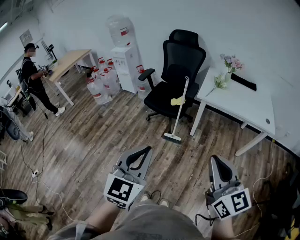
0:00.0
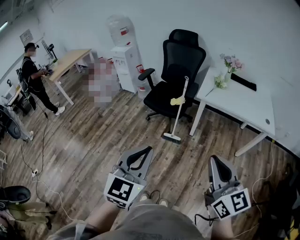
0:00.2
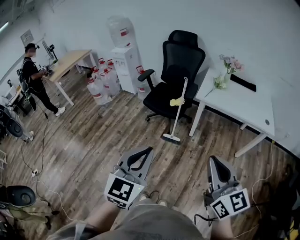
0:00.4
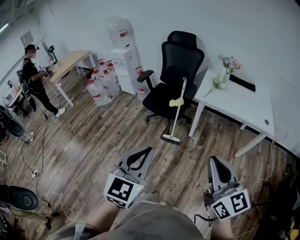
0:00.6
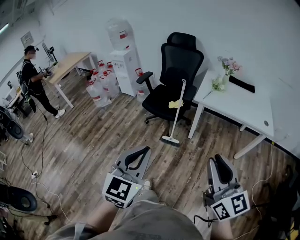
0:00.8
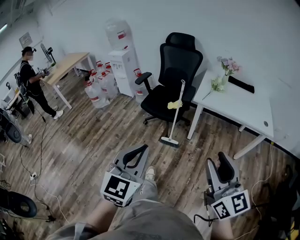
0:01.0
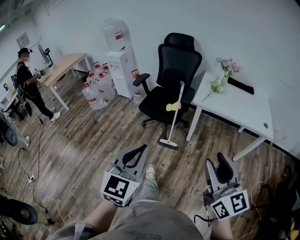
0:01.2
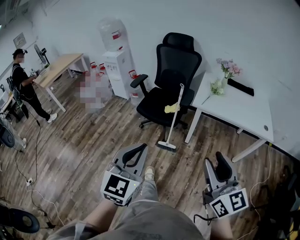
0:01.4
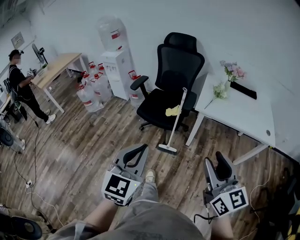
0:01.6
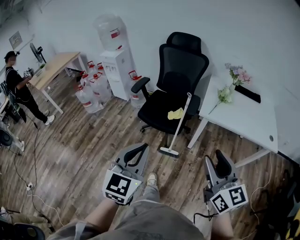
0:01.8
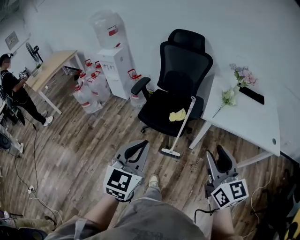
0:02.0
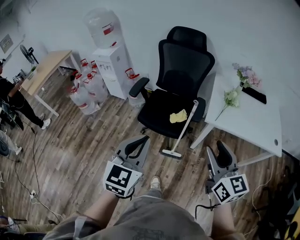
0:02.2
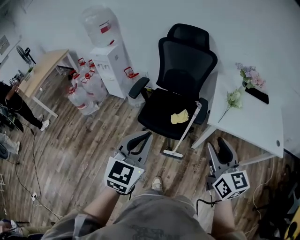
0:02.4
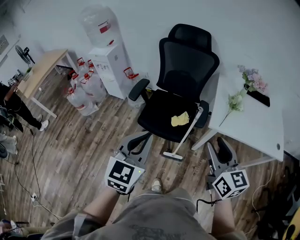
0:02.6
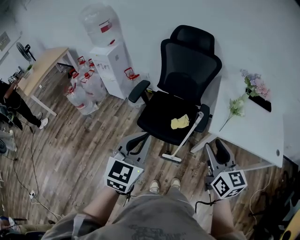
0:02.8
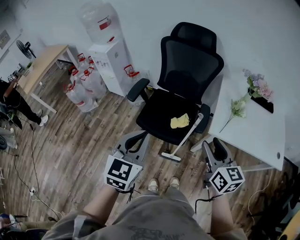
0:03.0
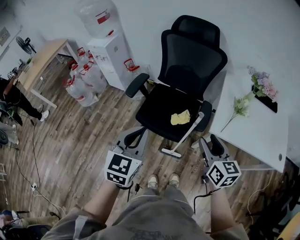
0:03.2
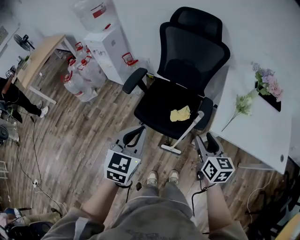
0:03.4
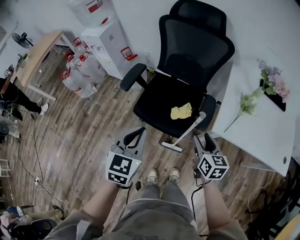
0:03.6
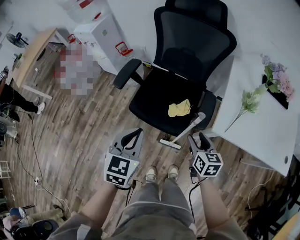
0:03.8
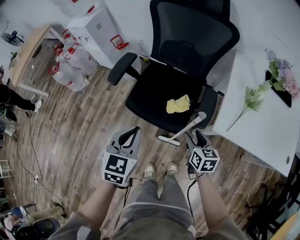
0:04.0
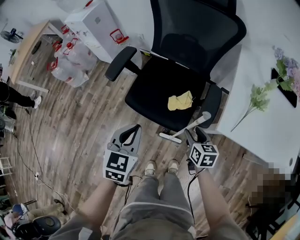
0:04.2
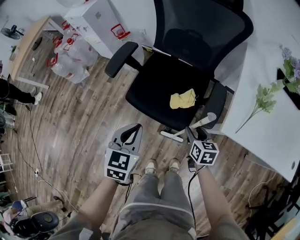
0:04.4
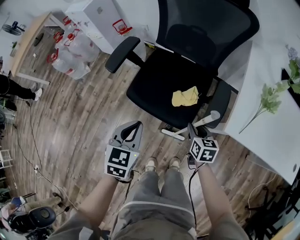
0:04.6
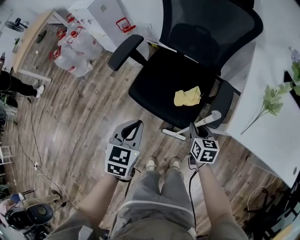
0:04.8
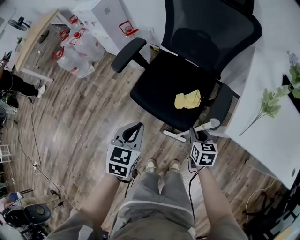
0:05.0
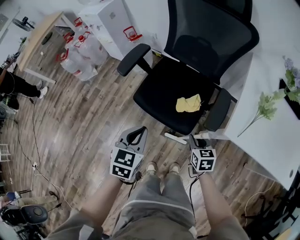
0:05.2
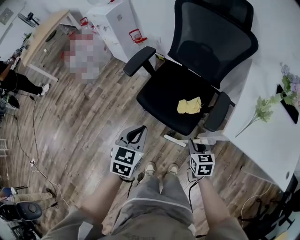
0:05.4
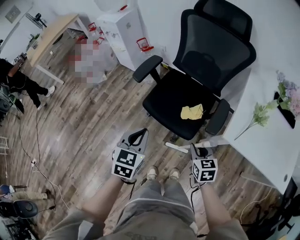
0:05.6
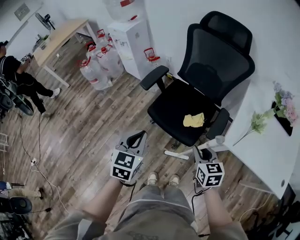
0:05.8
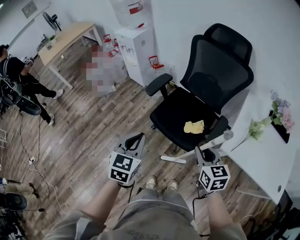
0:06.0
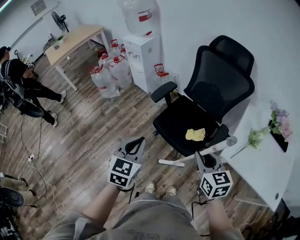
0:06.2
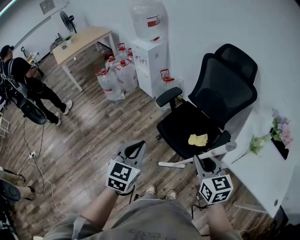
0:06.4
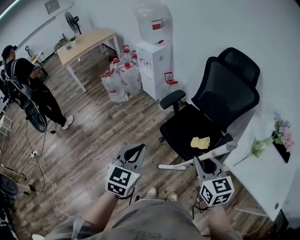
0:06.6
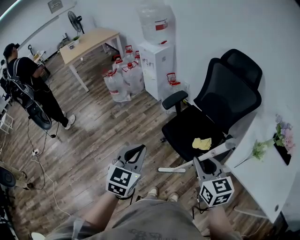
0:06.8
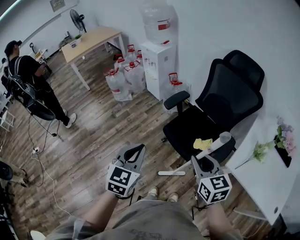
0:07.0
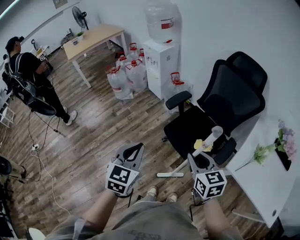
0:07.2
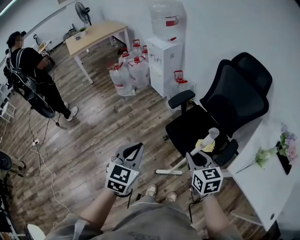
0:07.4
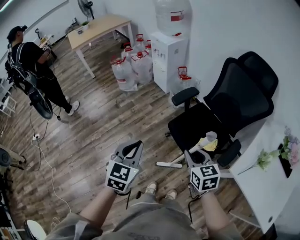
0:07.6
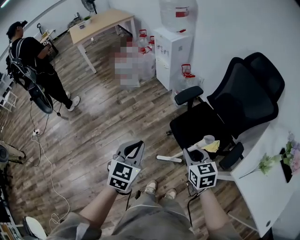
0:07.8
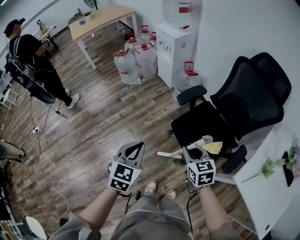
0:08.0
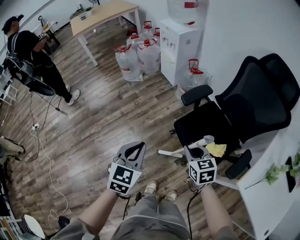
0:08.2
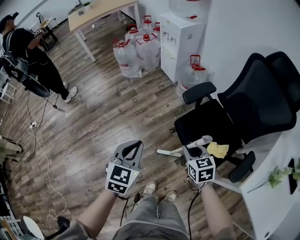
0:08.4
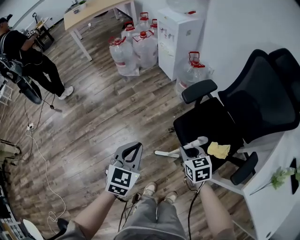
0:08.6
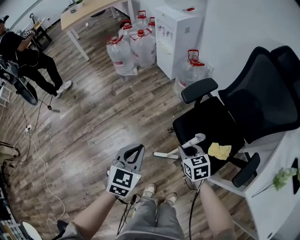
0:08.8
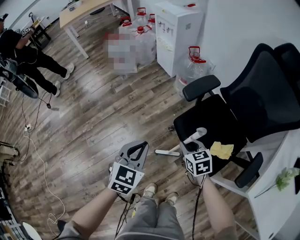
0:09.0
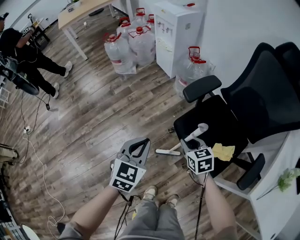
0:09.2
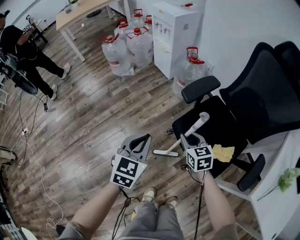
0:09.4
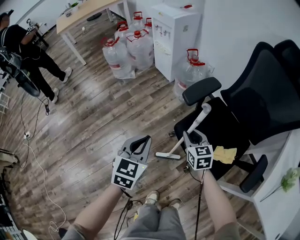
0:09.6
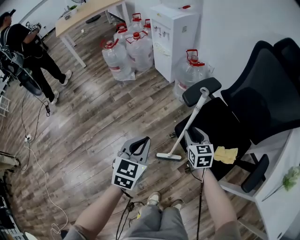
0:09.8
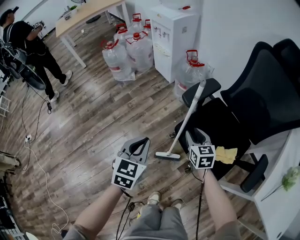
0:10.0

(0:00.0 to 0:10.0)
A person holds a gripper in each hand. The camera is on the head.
0:00.0 - 0:01.4: Both grippers travel together forward, some 10 cm. The right gripper opens.
0:01.4 - 0:02.8: Both grippers travel together forward, some 40 cm.
0:02.8 - 0:04.2: The grippers both shift downward and forward by approximately 35 cm. The right gripper turns by approximately 30 degrees, while the left gripper changes its angle by approximately 20 degrees.
0:04.2 - 0:05.8: The right gripper heads upward and to the left, covering approximately 15 cm, changes its angle by roughly 20 degrees, and closes its fingers. The left gripper heads upward, to the left and backward, covering approximately 15 cm.
0:05.8 - 0:07.2: The left gripper is displaced upward, to the left and backward by about 15 cm; the right gripper goes roughly 20 cm upward and to the left, and changes its angle by about 20 degrees.
0:07.2 - 0:08.6: The grippers both shift downward and forward by some 25 cm. The right gripper turns by approximately 20 degrees.
0:08.6 - 0:10.0: Both grippers travel together forward and downward, some 10 cm.

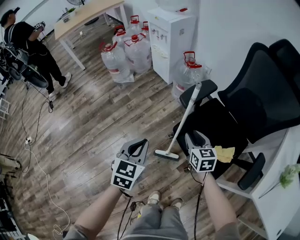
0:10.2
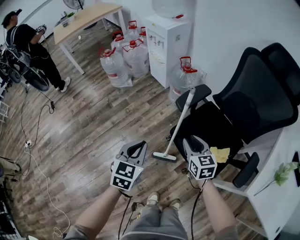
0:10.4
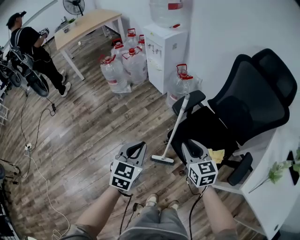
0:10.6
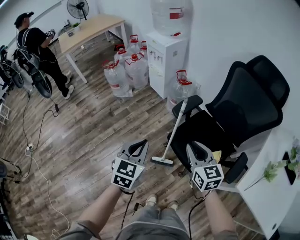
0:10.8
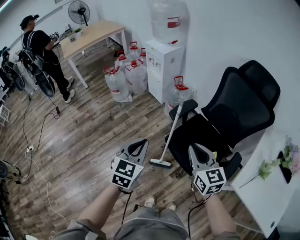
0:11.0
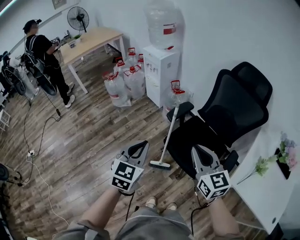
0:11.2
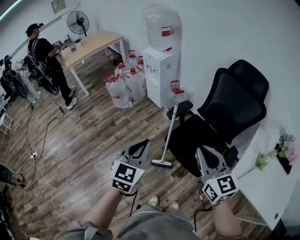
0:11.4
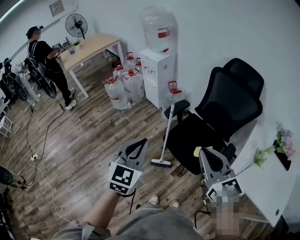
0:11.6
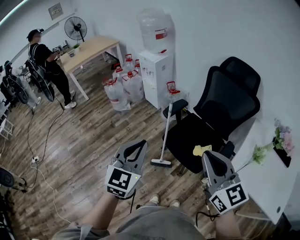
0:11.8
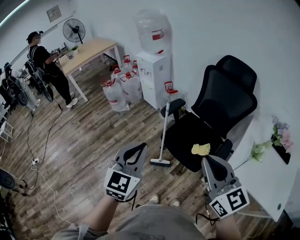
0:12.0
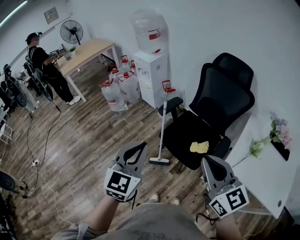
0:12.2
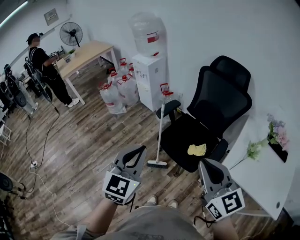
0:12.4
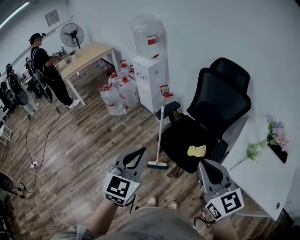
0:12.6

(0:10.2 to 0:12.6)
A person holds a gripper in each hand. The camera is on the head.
0:10.2 - 0:11.4: The right gripper travels upward and backward by some 50 cm, rotates roughly 30 degrees, and closes its fingers. The left gripper travels upward by about 30 cm.
0:11.4 - 0:12.6: The grippers both shift backward, upward and to the right by approximately 15 cm.

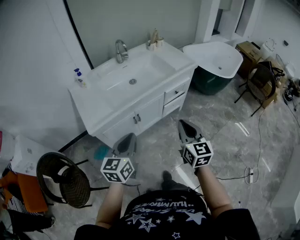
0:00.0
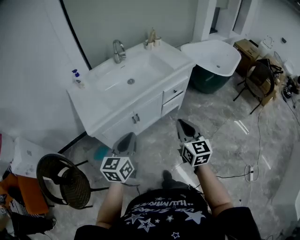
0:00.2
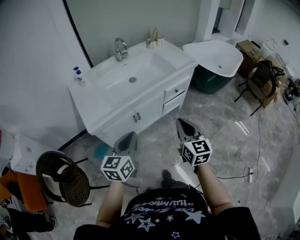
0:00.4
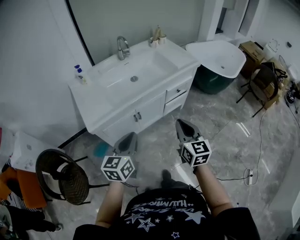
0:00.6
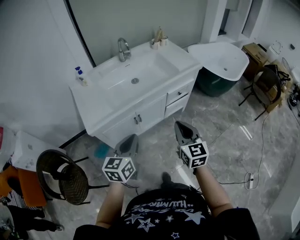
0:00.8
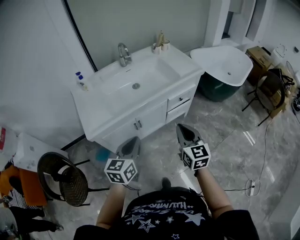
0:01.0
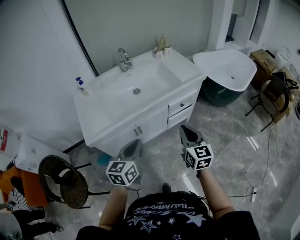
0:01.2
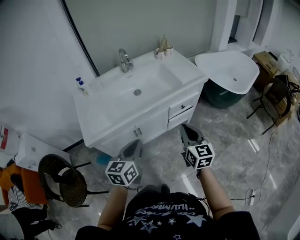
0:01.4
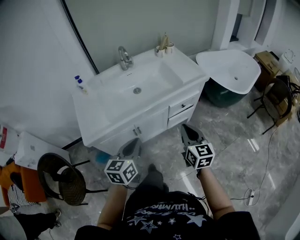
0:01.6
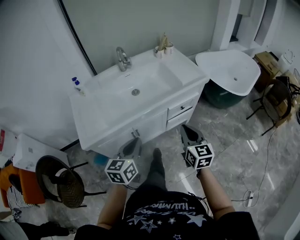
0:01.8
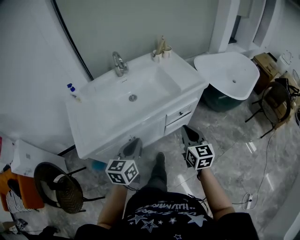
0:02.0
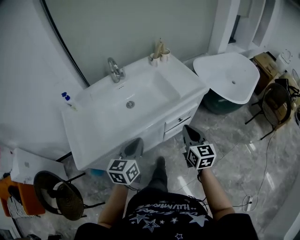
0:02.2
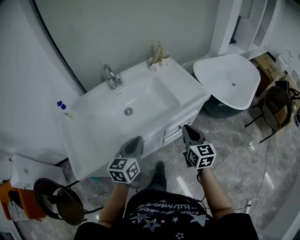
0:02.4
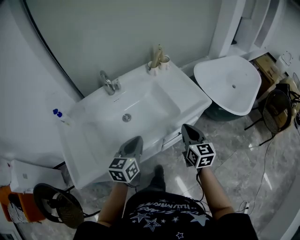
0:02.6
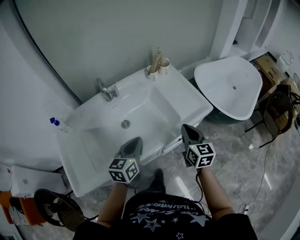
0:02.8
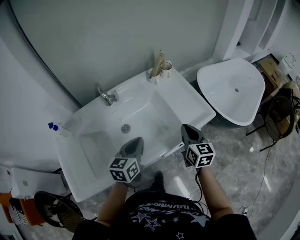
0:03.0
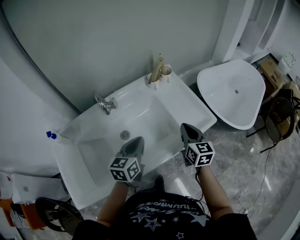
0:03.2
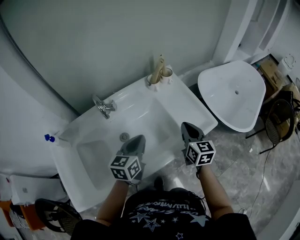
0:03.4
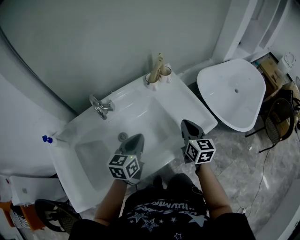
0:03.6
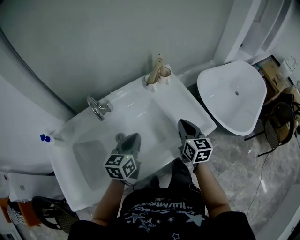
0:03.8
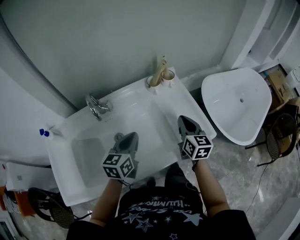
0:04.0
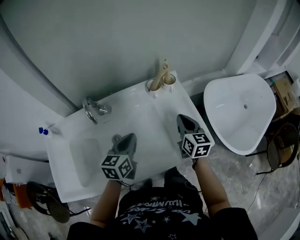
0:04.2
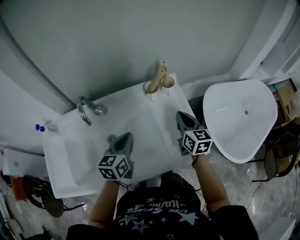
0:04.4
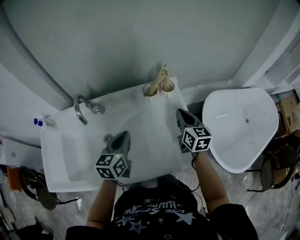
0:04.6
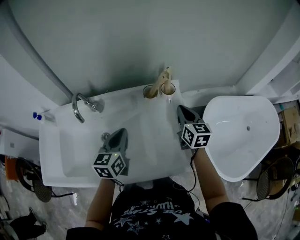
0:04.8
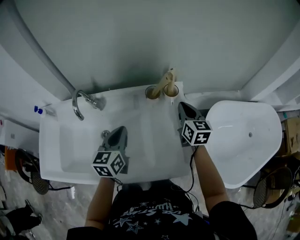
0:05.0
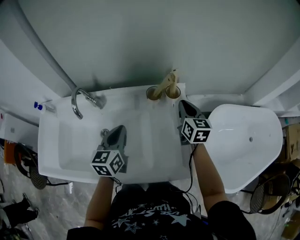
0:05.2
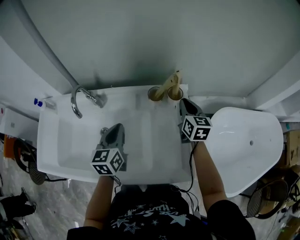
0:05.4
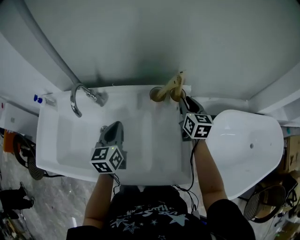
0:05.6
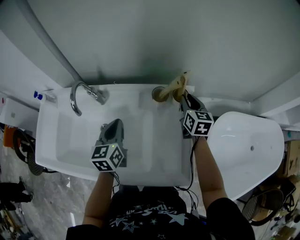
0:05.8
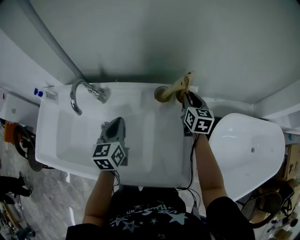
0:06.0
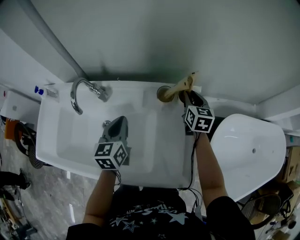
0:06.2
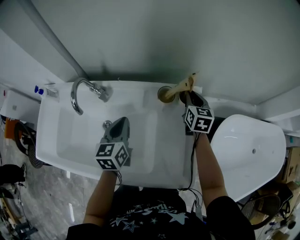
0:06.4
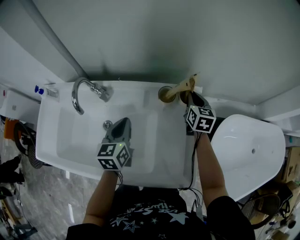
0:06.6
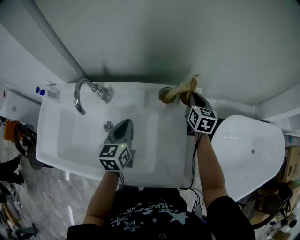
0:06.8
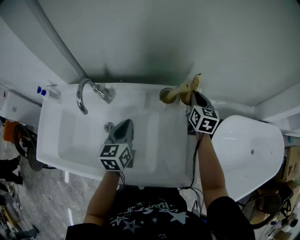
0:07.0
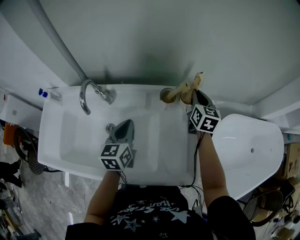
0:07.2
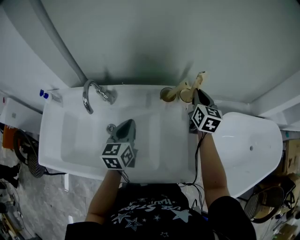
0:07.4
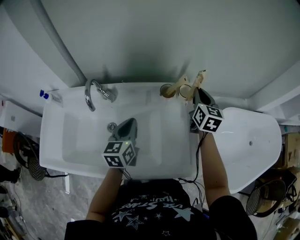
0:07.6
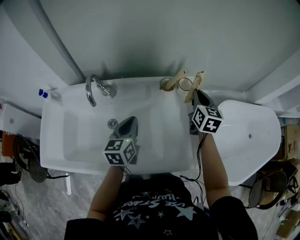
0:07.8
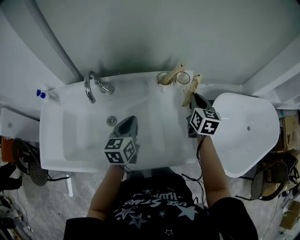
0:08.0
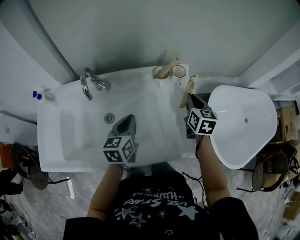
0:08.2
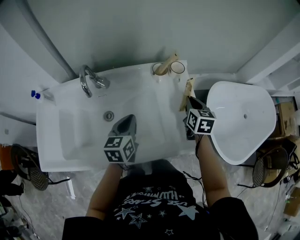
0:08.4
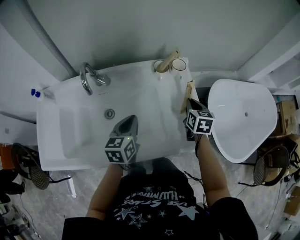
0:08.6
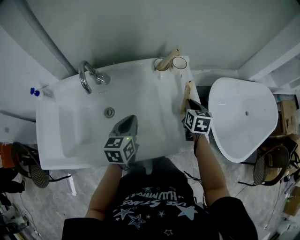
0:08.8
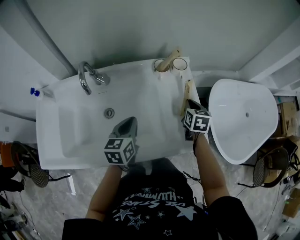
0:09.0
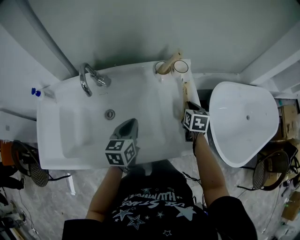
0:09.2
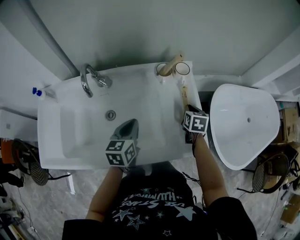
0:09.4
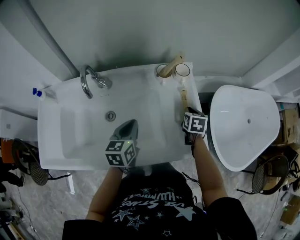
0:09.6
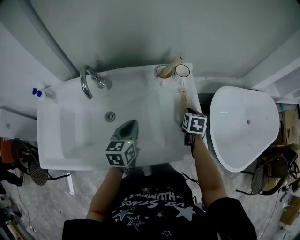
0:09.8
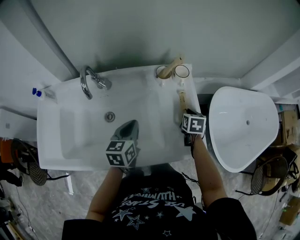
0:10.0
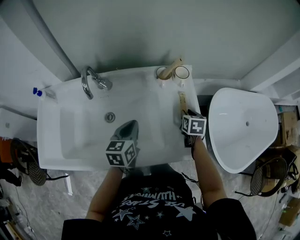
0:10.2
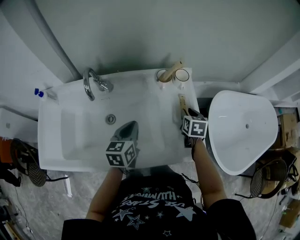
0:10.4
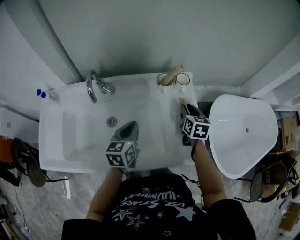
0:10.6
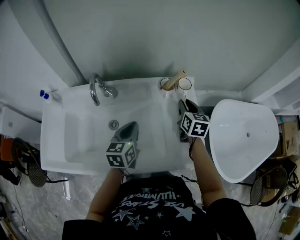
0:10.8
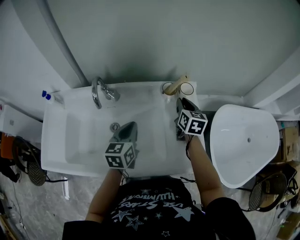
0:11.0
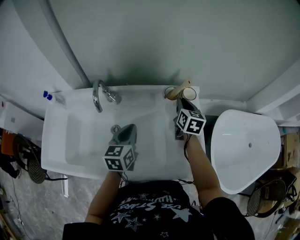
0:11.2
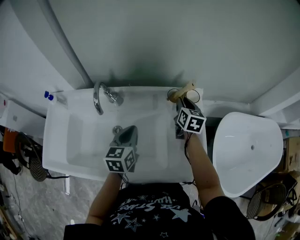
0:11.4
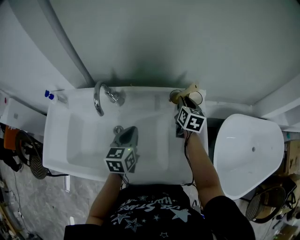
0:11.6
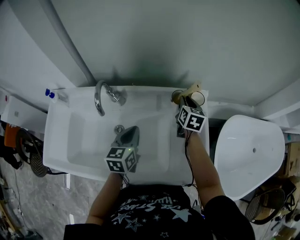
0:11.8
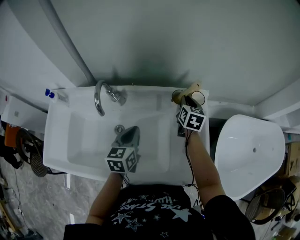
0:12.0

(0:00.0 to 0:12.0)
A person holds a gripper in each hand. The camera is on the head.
0:00.0 - 0:01.6: The grippers both shift forward and to the right by roughly 15 cm.
0:01.6 - 0:03.0: Both grippers move forward, some 35 cm.
0:03.0 - 0:04.4: The left gripper travels forward by some 15 cm. Meanwhile the right gripper heads forward, covering approximately 25 cm.
0:04.4 - 0:06.0: The right gripper heads forward, covering roughly 20 cm, and opens its fingers. The left gripper goes roughly 10 cm forward, and changes its angle by approximately 30 degrees.
0:06.0 - 0:07.6: The right gripper travels upward by some 10 cm.
0:07.6 - 0:09.0: The right gripper shifts approximately 20 cm backward and downward, and rotates approximately 20 degrees; the left gripper travels backward by some 5 cm.
0:09.0 - 0:10.4: The right gripper opens.
0:10.4 - 0:12.0: The right gripper is displaced forward and to the left by about 20 cm. Meanwhile the left gripper goes roughly 5 cm forward.
